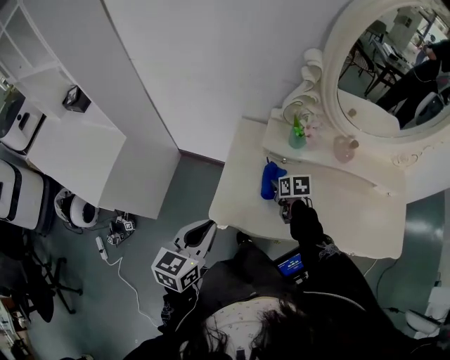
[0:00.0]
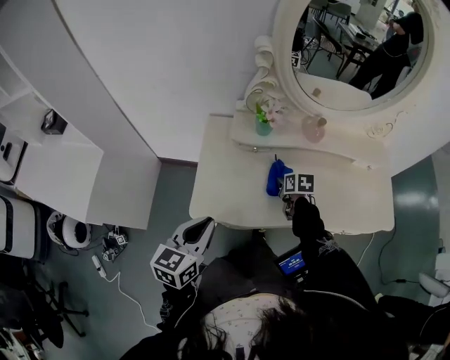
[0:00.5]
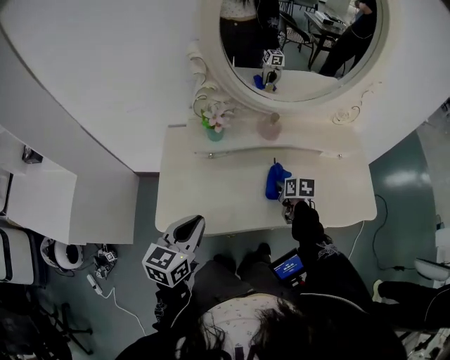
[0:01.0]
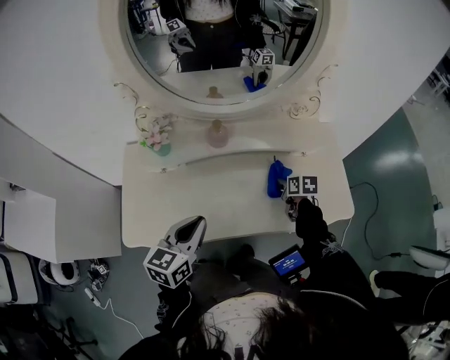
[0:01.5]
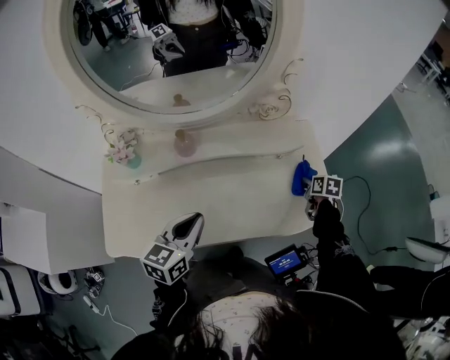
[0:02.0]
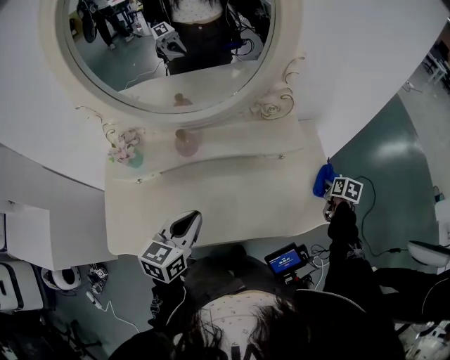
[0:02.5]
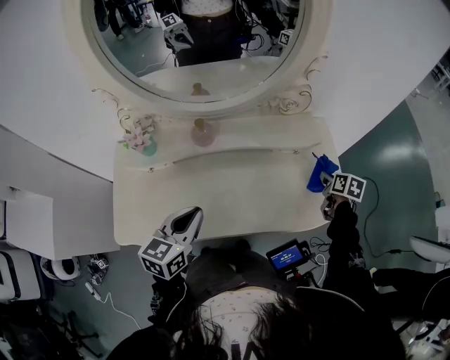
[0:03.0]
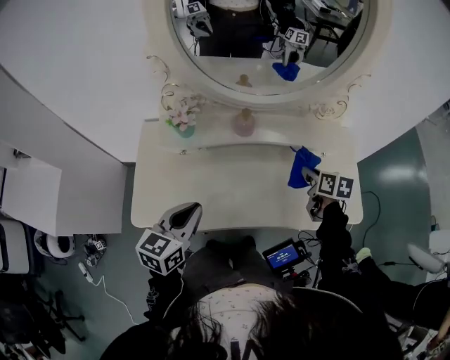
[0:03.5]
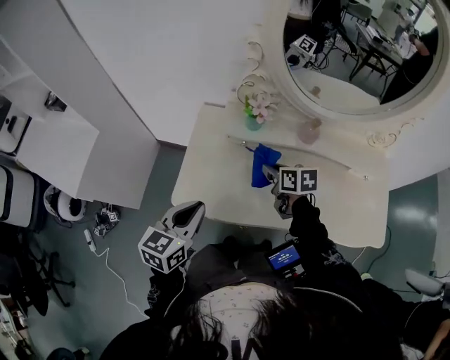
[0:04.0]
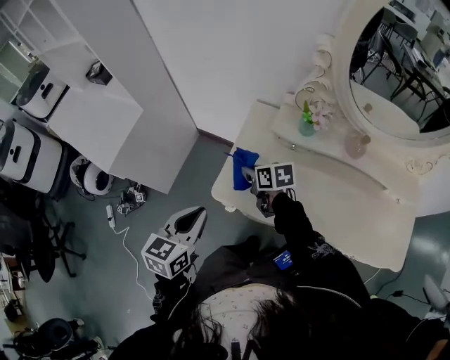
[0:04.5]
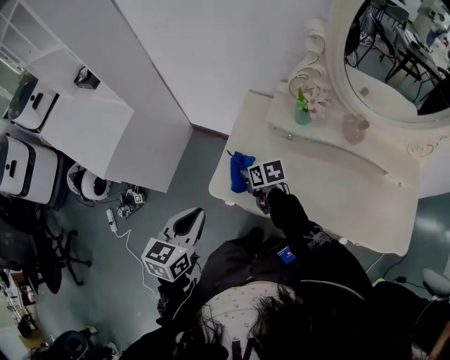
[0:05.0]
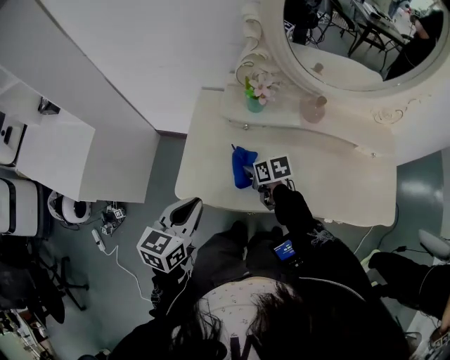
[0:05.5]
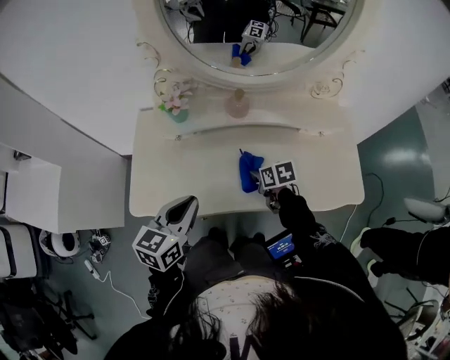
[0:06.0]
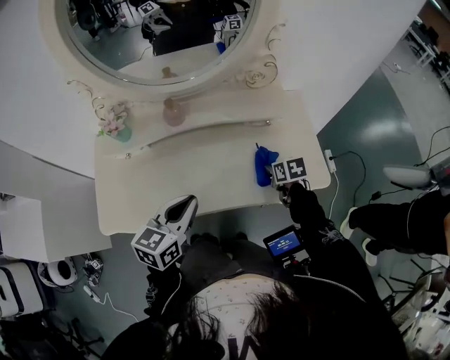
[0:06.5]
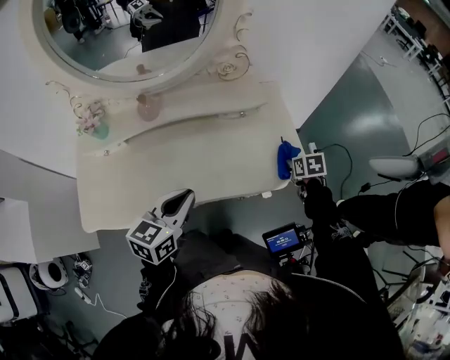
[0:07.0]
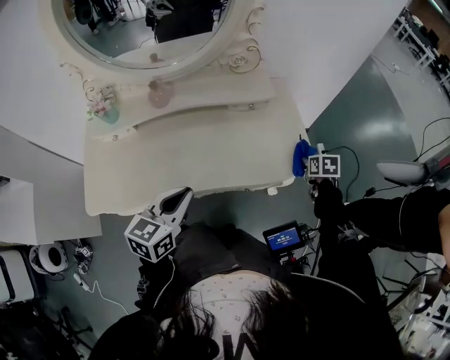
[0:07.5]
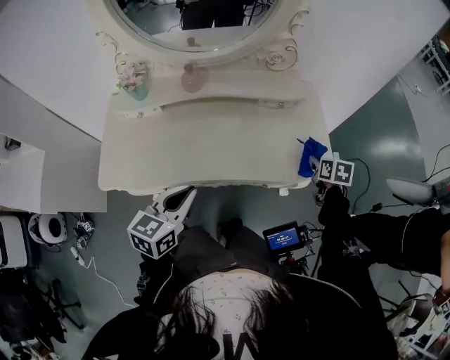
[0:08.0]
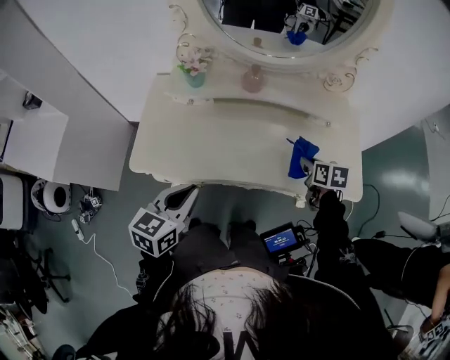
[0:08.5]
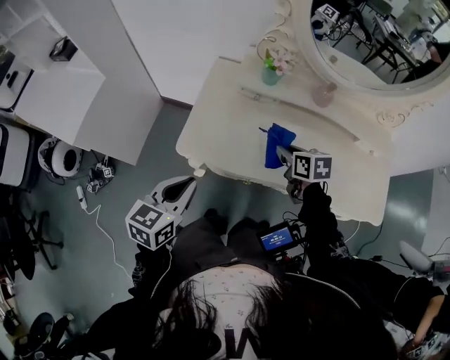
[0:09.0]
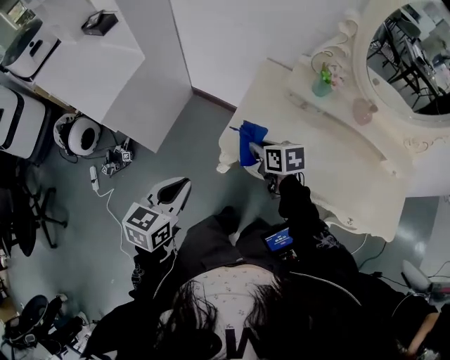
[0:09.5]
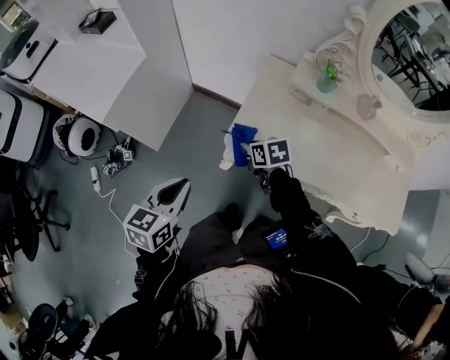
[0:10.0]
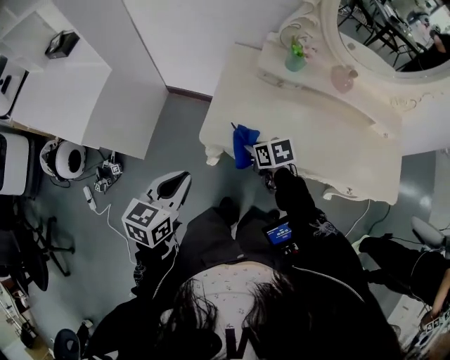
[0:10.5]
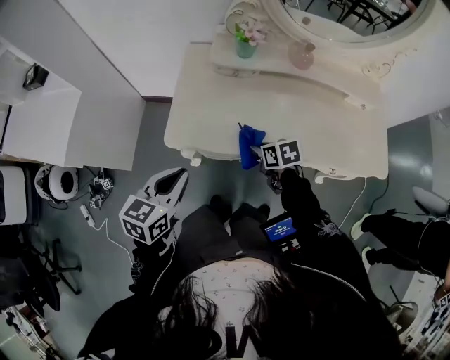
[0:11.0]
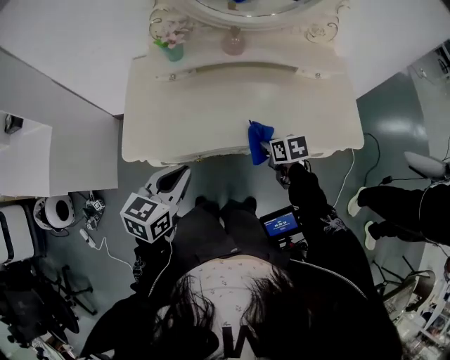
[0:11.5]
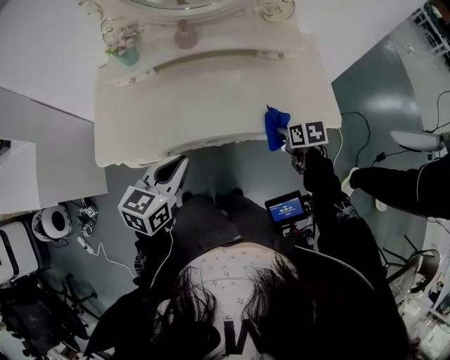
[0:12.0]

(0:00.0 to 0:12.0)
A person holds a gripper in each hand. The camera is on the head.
0:00.0 - 0:02.0: Both grippers are carried about 50 cm. The left gripper turns by about 20 degrees; the right gripper rotates approximately 40 degrees.
0:02.0 - 0:04.0: The right gripper moves about 60 cm, and swivels roughly 40 degrees. Meanwhile the left gripper moves roughly 30 cm, and rotates roughly 20 degrees.
0:04.0 - 0:06.0: The right gripper moves about 20 cm. Meanwhile the left gripper ends up about 15 cm from where it was.
0:06.0 - 0:08.0: The right gripper changes place by some 40 cm, and turns by approximately 30 degrees. Meanwhile the left gripper shifts by approximately 15 cm.
0:08.0 - 0:10.0: Both grippers are carried some 60 cm. The left gripper swivels roughly 30 degrees. Meanwhile the right gripper changes its angle by some 50 degrees.
0:10.0 - 0:12.0: The pair of grippers is taken some 50 cm. The right gripper changes its angle by approximately 40 degrees. Meanwhile the left gripper changes its angle by about 30 degrees.

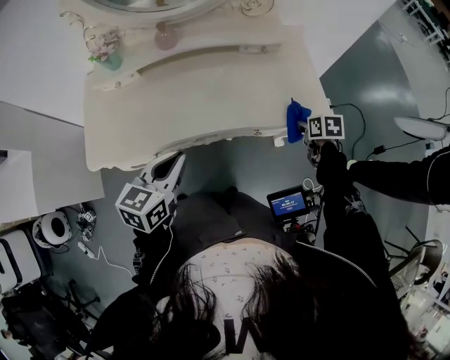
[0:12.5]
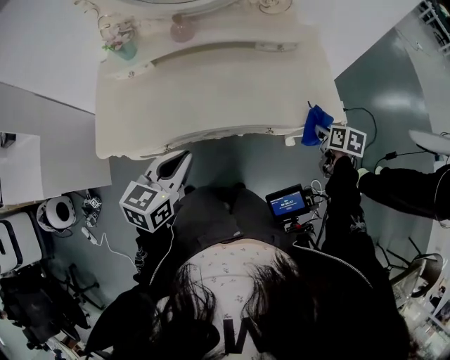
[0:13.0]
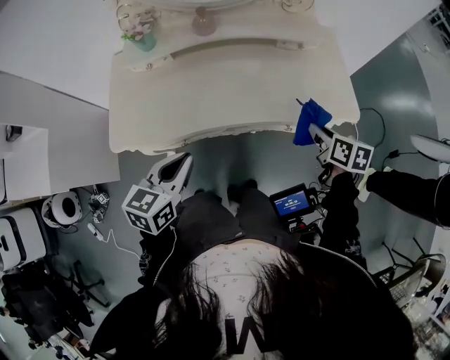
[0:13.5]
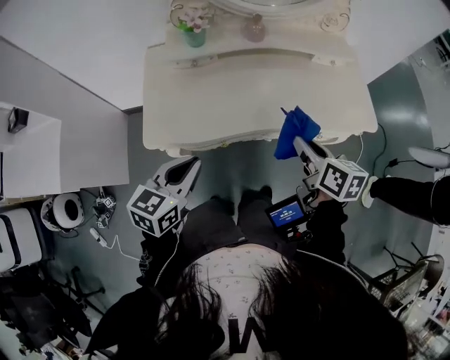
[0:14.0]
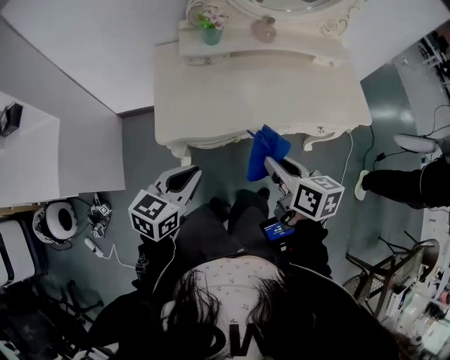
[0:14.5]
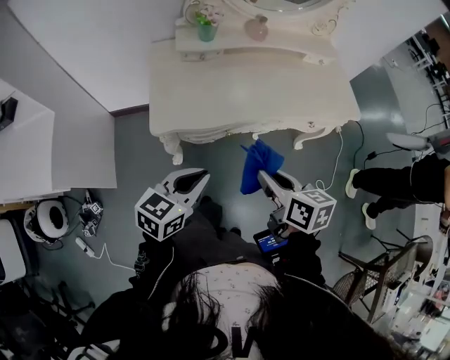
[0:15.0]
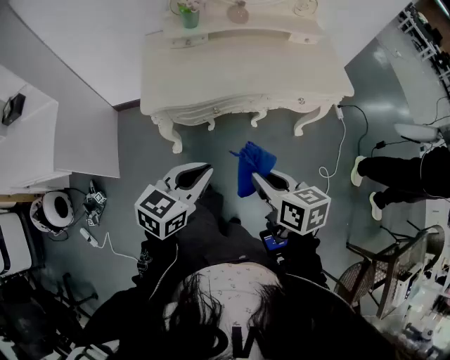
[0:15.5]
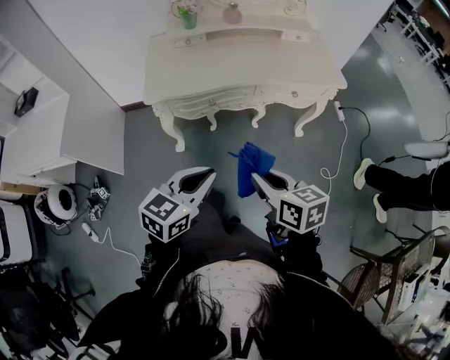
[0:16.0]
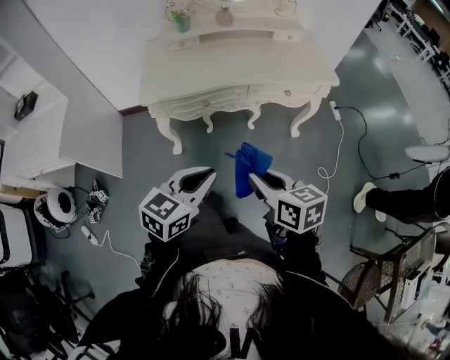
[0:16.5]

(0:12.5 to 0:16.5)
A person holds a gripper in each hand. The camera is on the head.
0:12.5 - 0:14.5: The left gripper goes some 30 cm to the left and backward. The right gripper is displaced to the left, backward and upward by roughly 50 cm, and angles its fingers upward, by approximately 30 degrees.
0:14.5 - 0:16.5: Both grippers travel together backward and to the right, roughly 30 cm.

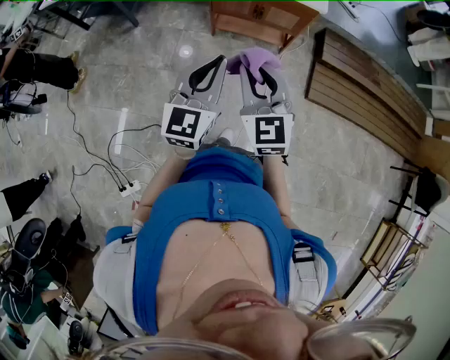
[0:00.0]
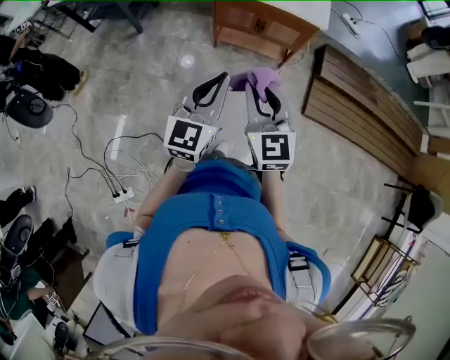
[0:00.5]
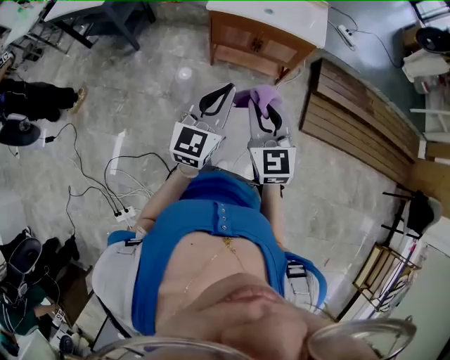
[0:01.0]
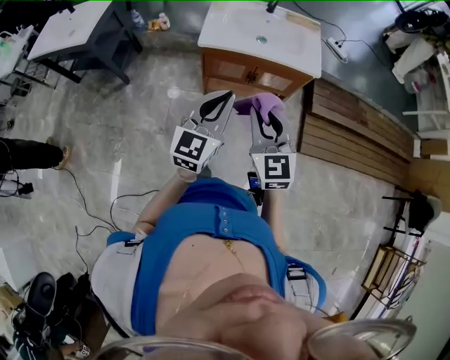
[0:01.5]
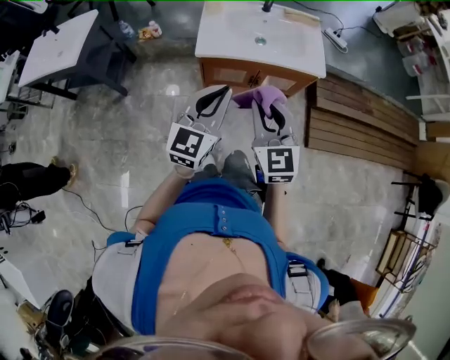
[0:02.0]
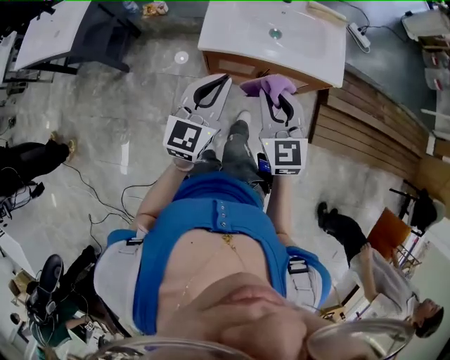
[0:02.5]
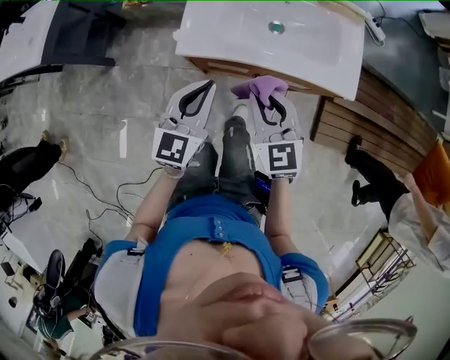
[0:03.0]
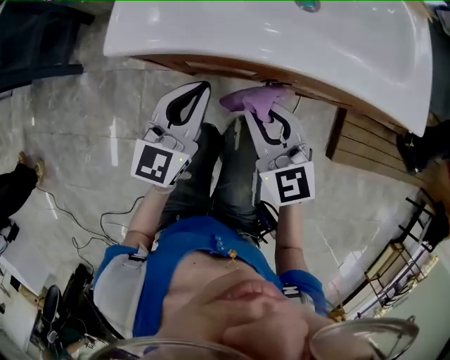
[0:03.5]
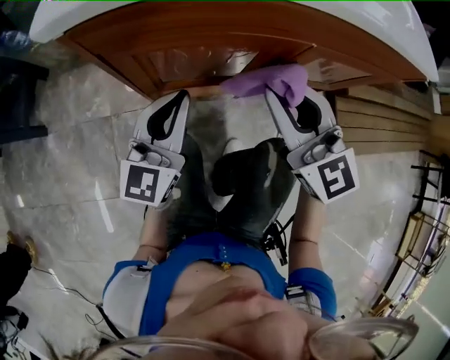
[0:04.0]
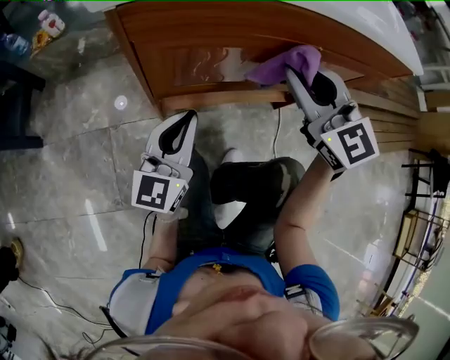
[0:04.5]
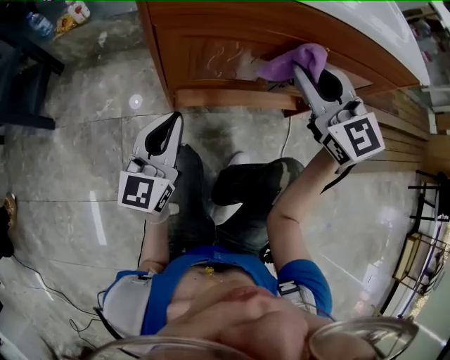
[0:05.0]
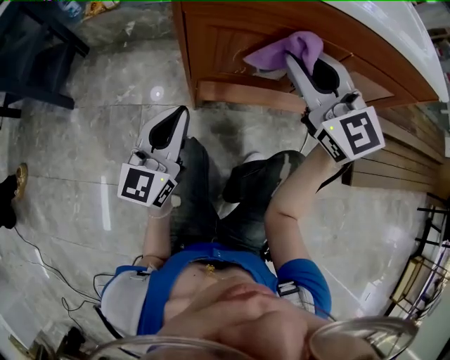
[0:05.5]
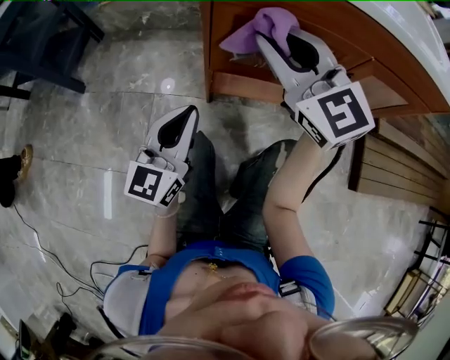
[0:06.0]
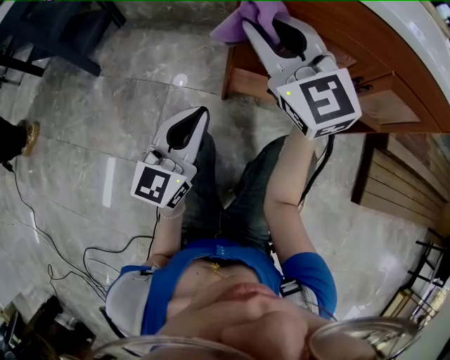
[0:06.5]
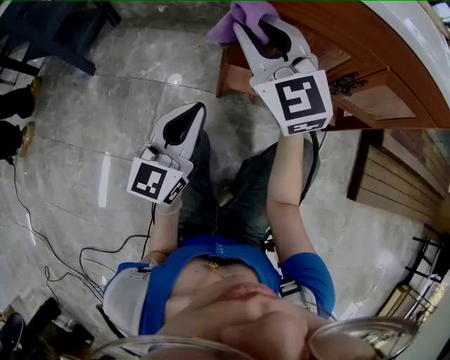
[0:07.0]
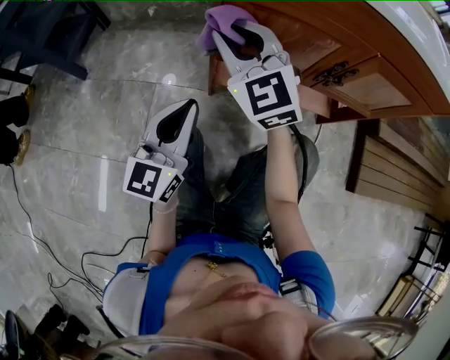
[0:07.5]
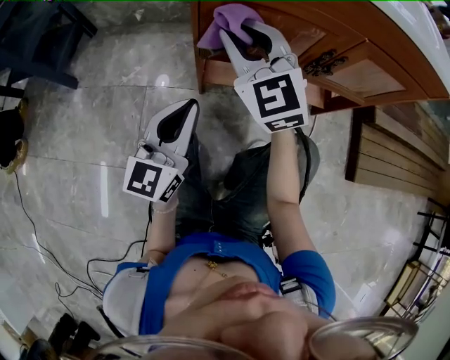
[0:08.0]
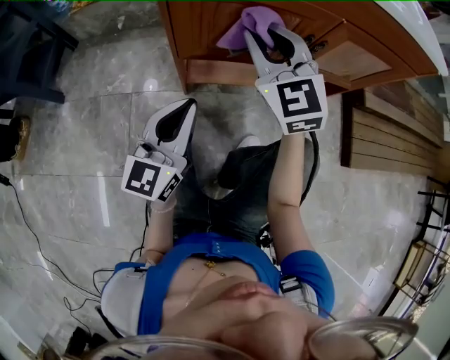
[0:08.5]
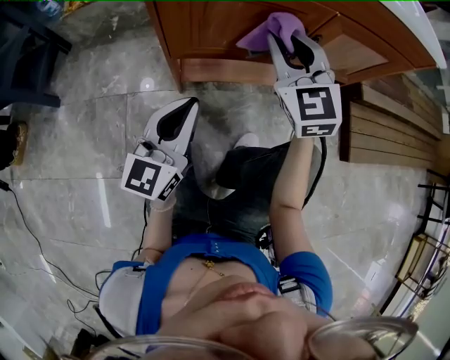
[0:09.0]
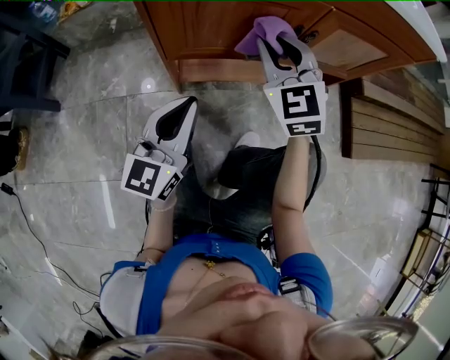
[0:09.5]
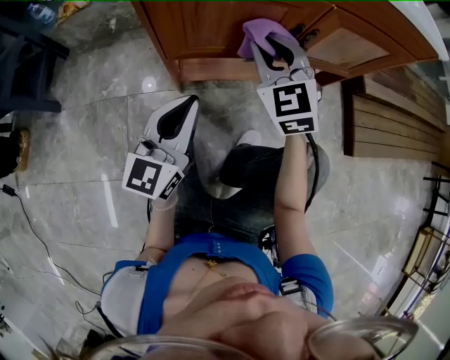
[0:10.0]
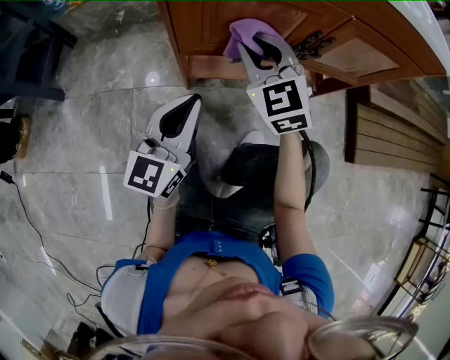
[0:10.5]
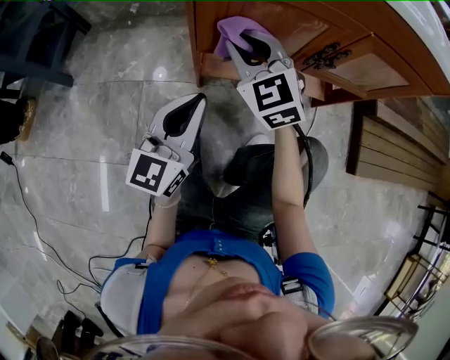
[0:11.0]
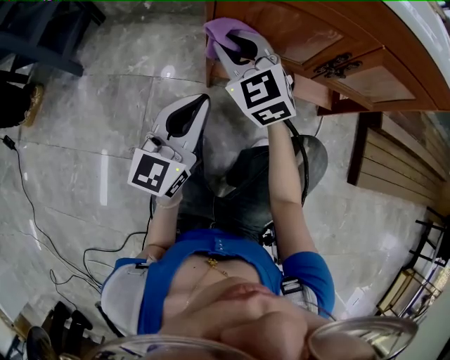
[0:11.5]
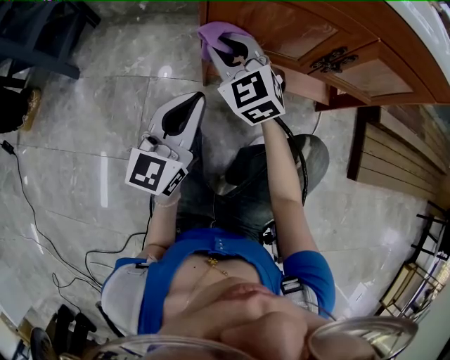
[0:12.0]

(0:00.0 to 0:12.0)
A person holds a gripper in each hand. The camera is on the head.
0:00.0 - 0:02.0: Both grippers travel together forward, roughly 30 cm.
0:02.0 - 0:04.0: The right gripper is displaced downward and forward by roughly 50 cm. The left gripper is displaced downward by approximately 60 cm.
0:04.0 - 0:06.0: The left gripper heads to the left and backward, covering some 15 cm. Meanwhile the right gripper travels to the left by some 15 cm.
0:06.0 - 0:08.0: The right gripper heads downward, covering roughly 5 cm.
0:08.0 - 0:10.0: The right gripper moves to the right and downward, some 15 cm, and turns by about 20 degrees, while the left gripper travels to the right by roughly 5 cm.
0:10.0 - 0:12.0: The right gripper shifts roughly 15 cm to the left, and turns by about 20 degrees. The left gripper goes approximately 5 cm to the left.
